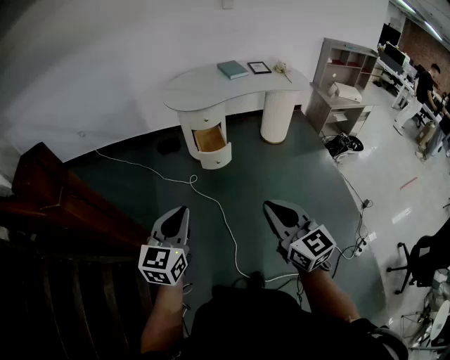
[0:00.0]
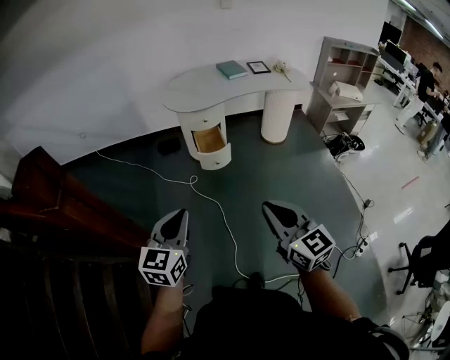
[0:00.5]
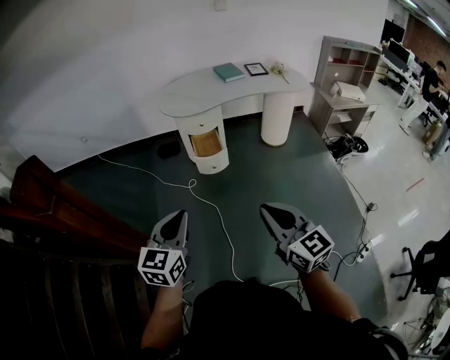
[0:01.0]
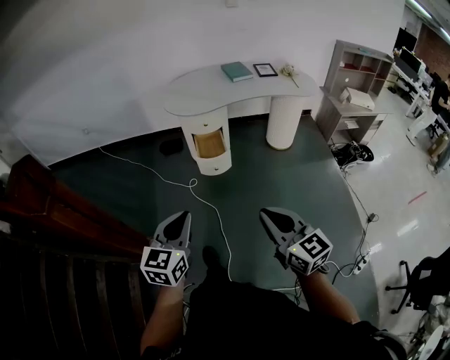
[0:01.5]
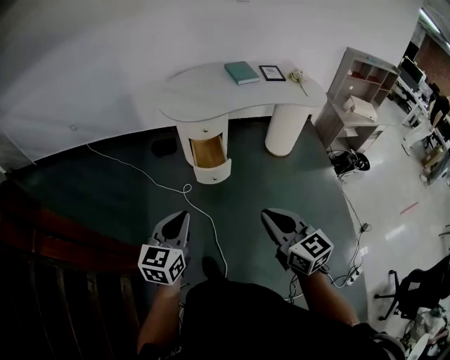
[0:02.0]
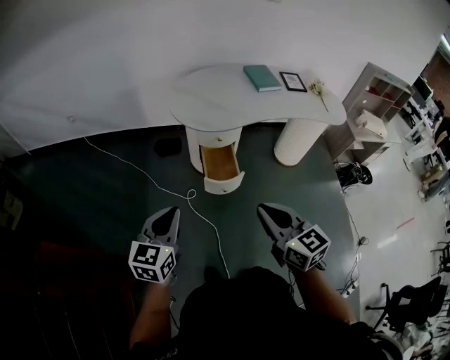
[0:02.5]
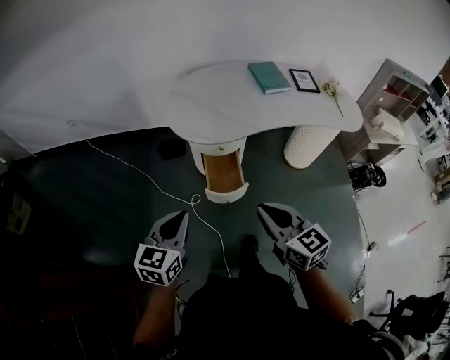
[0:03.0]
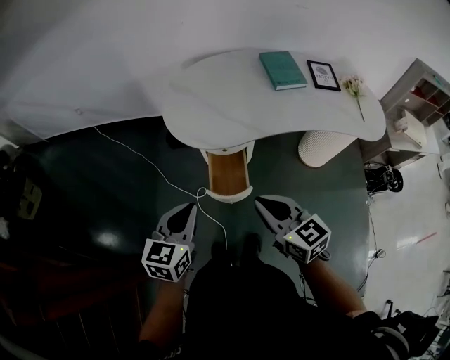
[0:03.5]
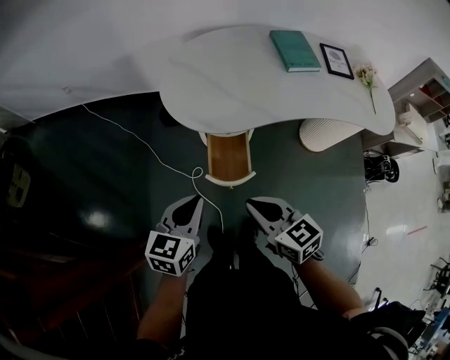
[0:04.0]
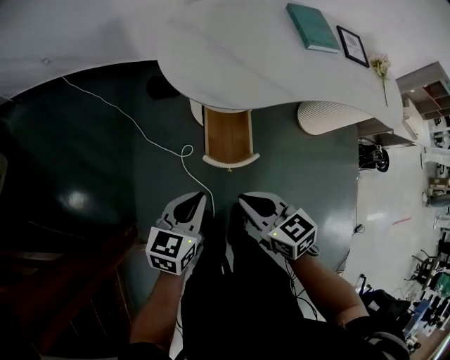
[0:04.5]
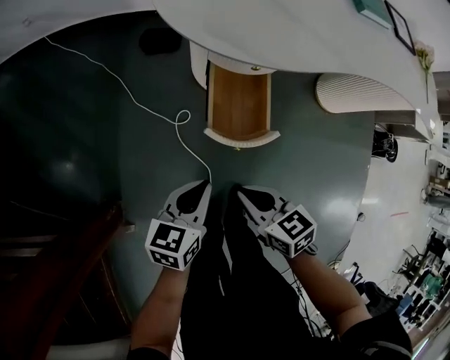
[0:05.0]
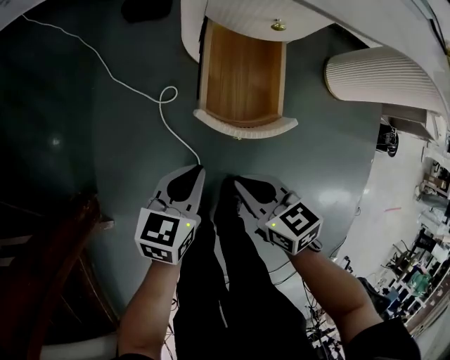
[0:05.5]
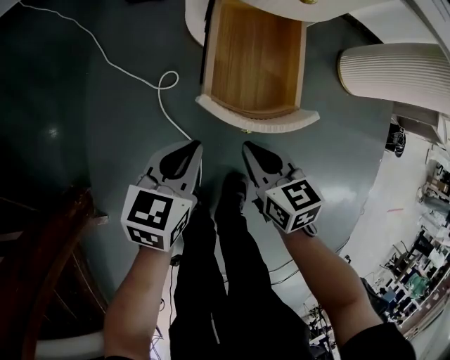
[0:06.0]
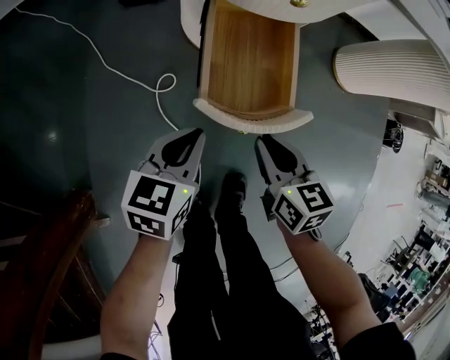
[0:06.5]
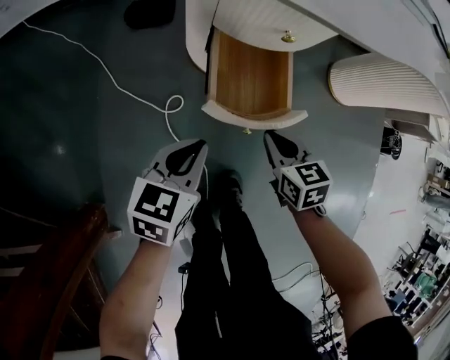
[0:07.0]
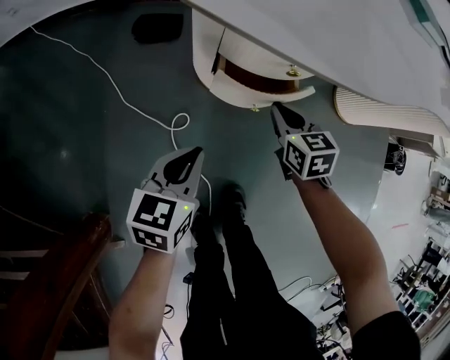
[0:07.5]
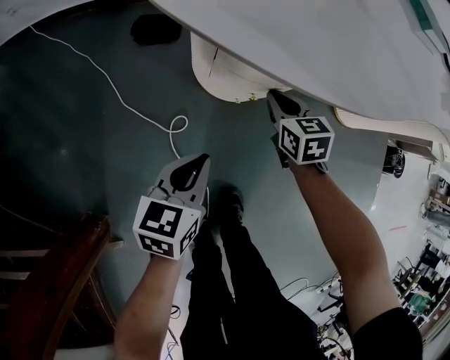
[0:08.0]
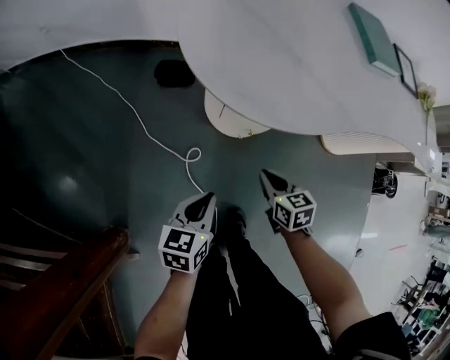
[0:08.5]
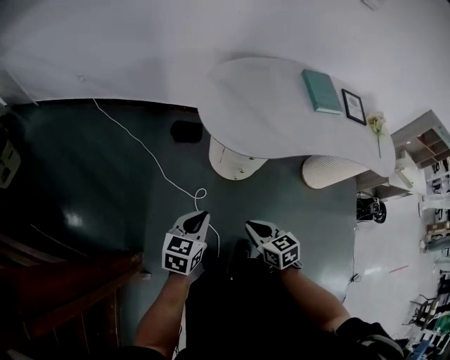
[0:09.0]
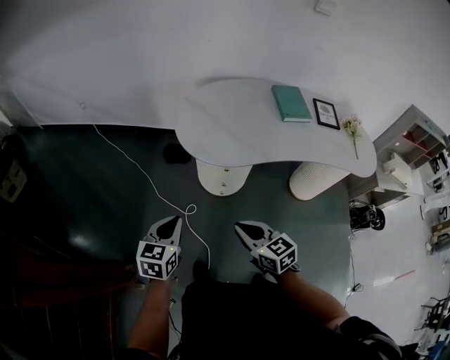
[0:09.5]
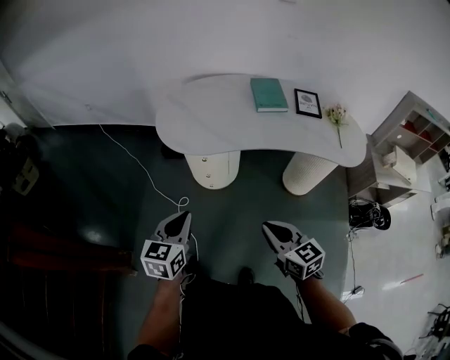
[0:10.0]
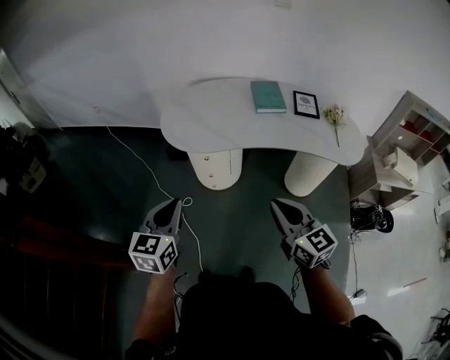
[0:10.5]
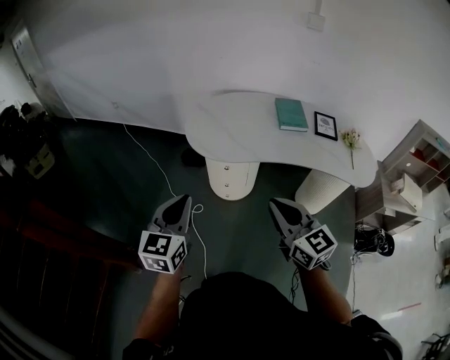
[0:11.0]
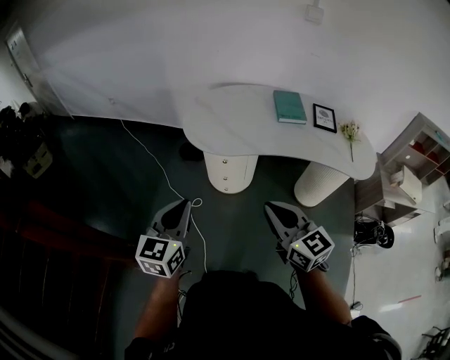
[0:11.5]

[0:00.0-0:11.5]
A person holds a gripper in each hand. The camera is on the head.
0:00.0 to 0:02.0: Both grippers travel together forward, some 20 cm.
0:02.0 to 0:04.0: The grippers both shift forward by about 40 cm. The right gripper swivels about 20 degrees.
0:04.0 to 0:06.0: Both grippers travel together downward, approximately 50 cm. The right gripper swivels approximately 20 degrees.
0:06.0 to 0:07.5: The right gripper shifts approximately 20 cm forward; the left gripper travels forward and upward by about 10 cm.
0:07.5 to 0:09.5: Both grippers move upward and backward, about 50 cm. The right gripper changes its angle by approximately 30 degrees.
0:09.5 to 0:11.5: The left gripper heads upward, backward and to the right, covering roughly 25 cm, and rotates roughly 20 degrees; the right gripper shifts about 25 cm upward, to the right and backward, and turns by roughly 20 degrees.

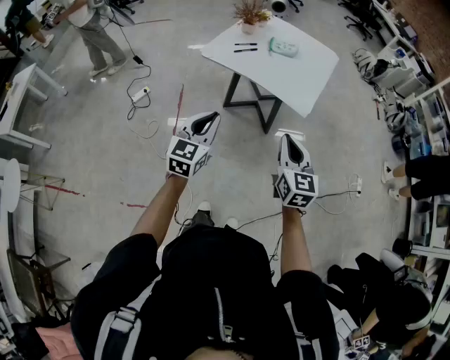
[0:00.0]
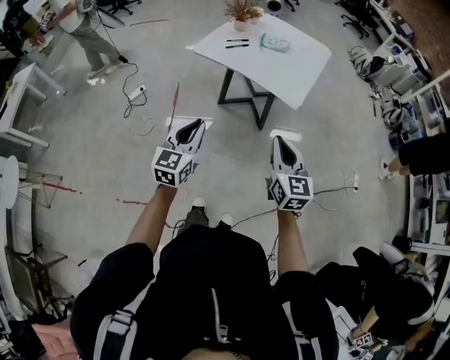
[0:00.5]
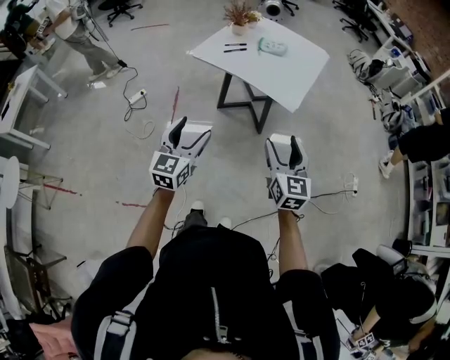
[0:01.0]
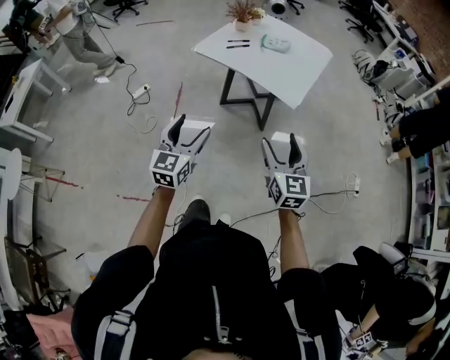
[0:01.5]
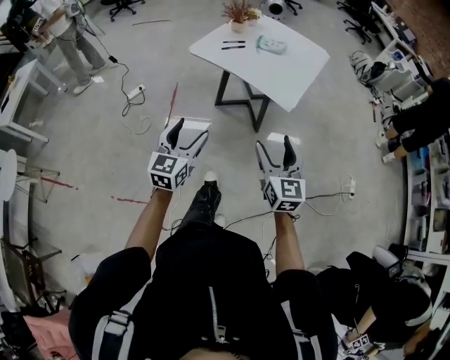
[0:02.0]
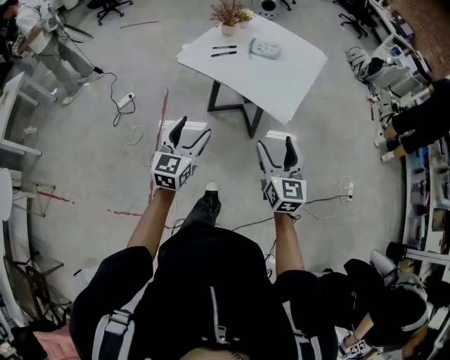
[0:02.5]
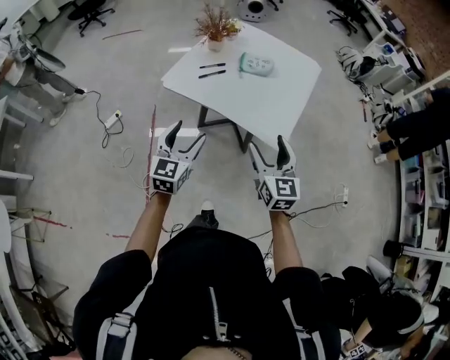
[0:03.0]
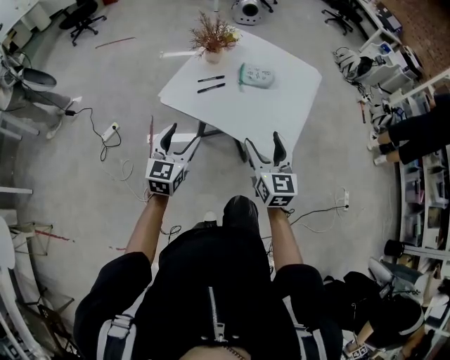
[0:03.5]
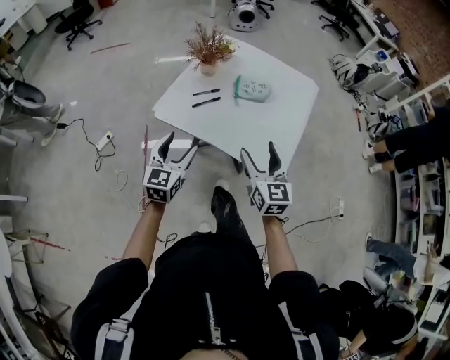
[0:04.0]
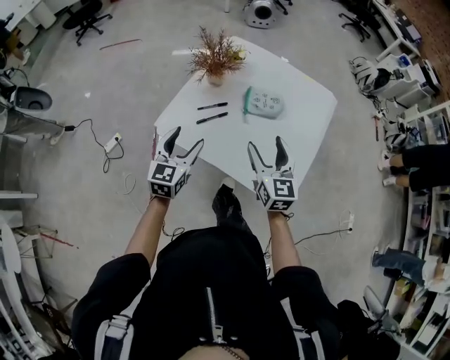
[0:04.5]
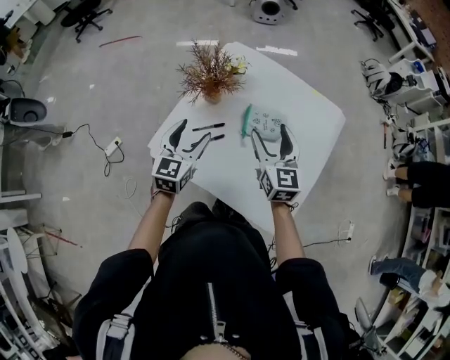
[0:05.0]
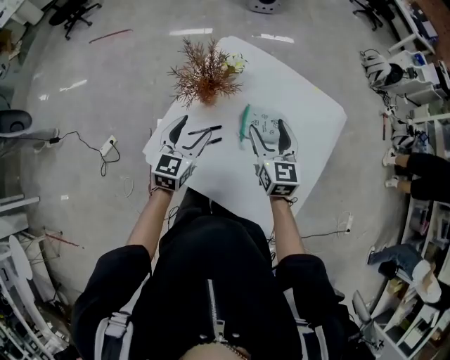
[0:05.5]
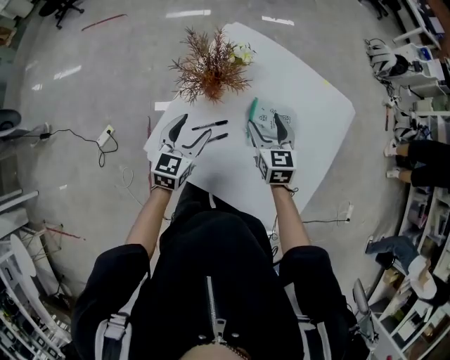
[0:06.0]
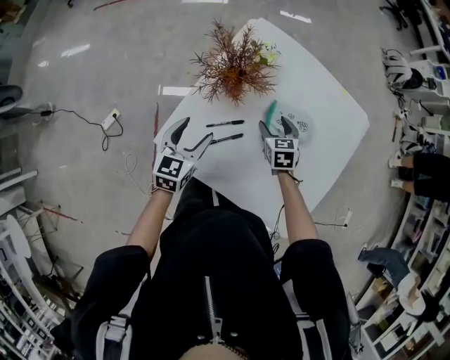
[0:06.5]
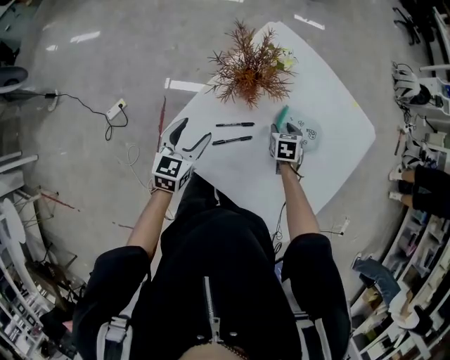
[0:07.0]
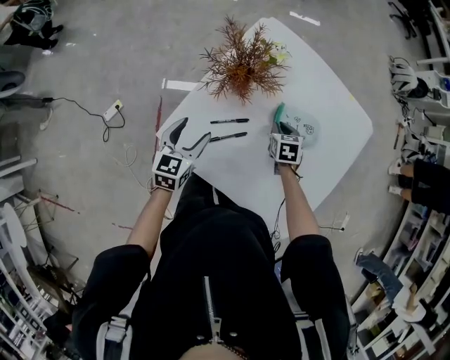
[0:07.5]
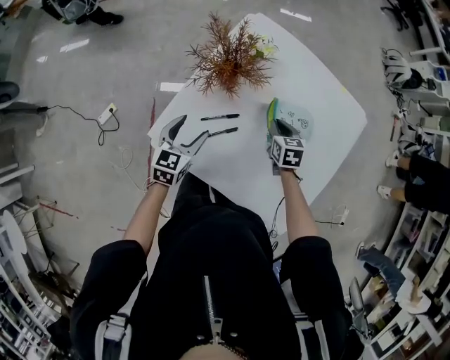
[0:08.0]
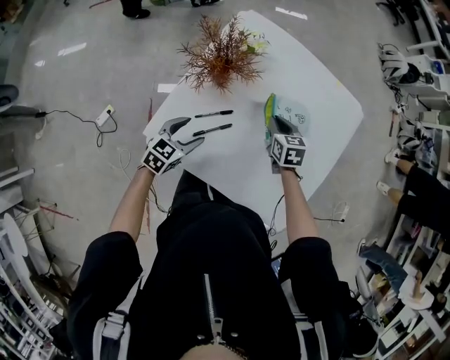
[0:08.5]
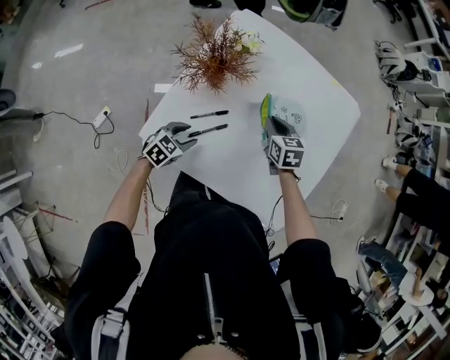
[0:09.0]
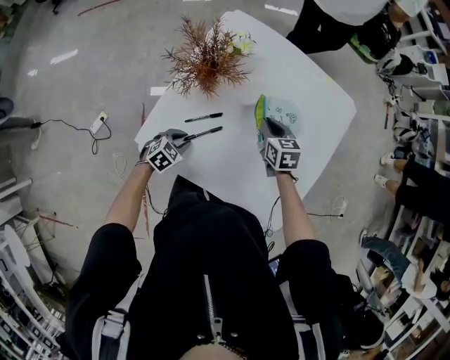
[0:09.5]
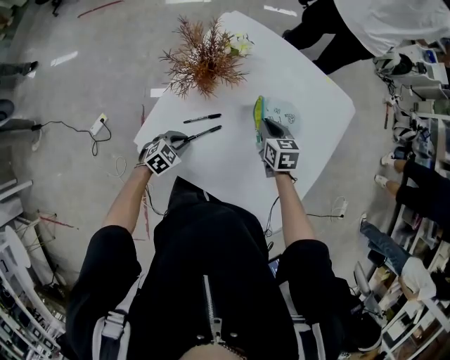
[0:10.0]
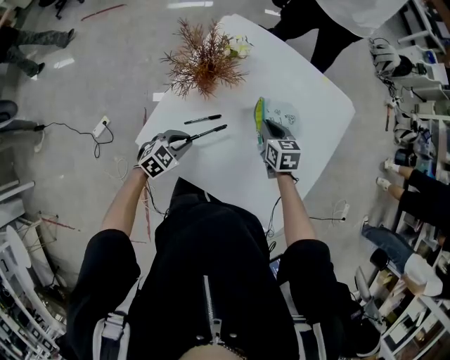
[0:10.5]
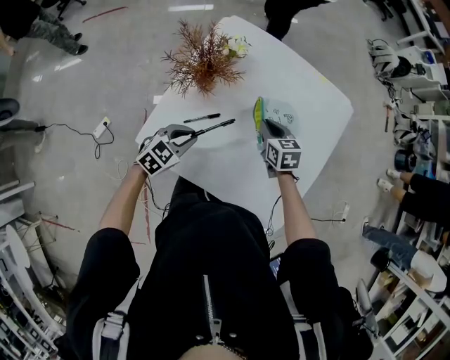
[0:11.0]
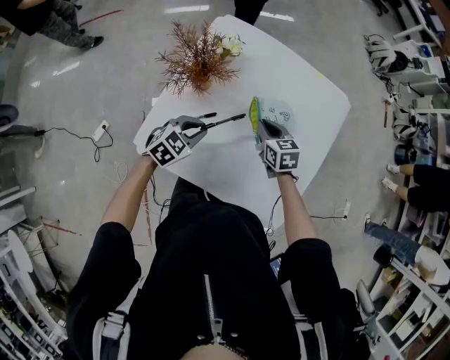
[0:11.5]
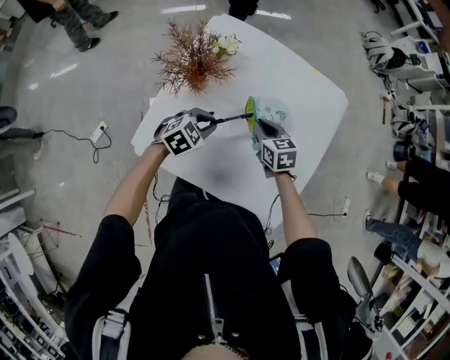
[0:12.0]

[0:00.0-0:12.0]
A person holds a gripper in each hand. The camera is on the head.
0:00.0 to 0:02.0: The left gripper travels backward by about 5 cm, and opens. The right gripper shifts by approximately 5 cm, and opens its fingers.
0:02.0 to 0:04.0: Both grippers travel together forward, some 40 cm.
0:04.0 to 0:06.0: The two grippers go approximately 35 cm forward.
0:06.0 to 0:08.0: The right gripper goes some 15 cm downward, rotates approximately 20 degrees, and closes; the left gripper heads downward, covering about 5 cm.
0:08.0 to 0:10.0: The left gripper travels downward by about 15 cm, swivels about 40 degrees, and closes up.
0:10.0 to 0:12.0: The left gripper is displaced upward, to the right and forward by some 15 cm.

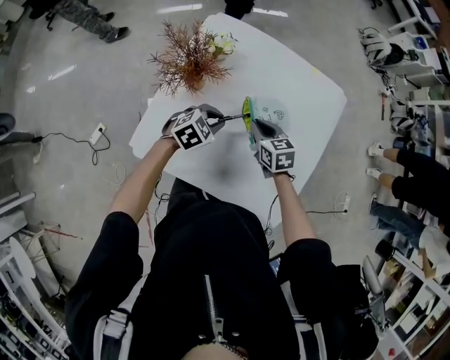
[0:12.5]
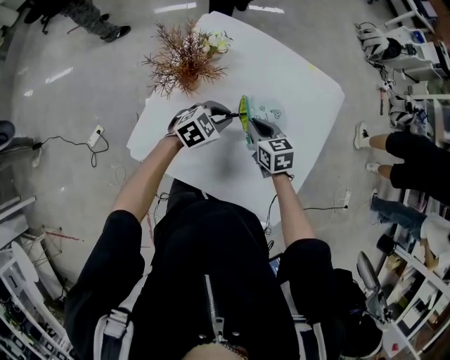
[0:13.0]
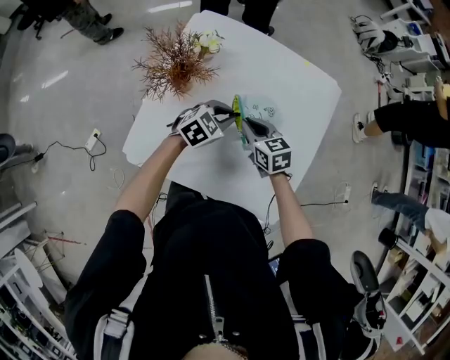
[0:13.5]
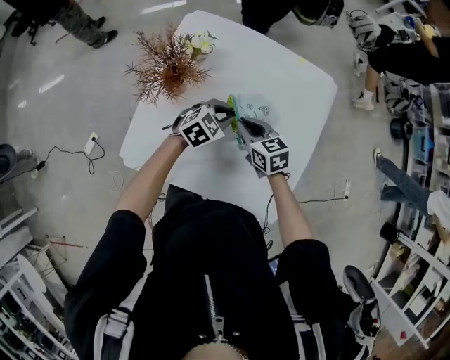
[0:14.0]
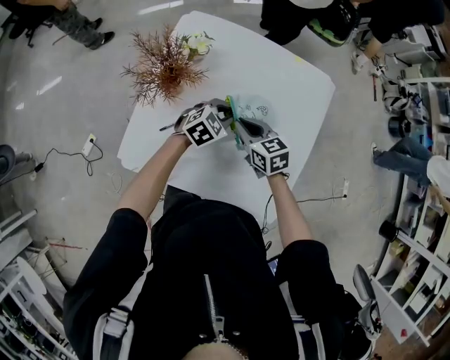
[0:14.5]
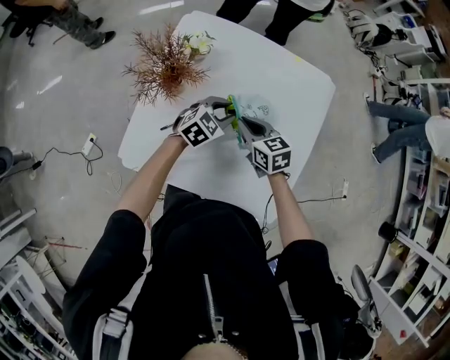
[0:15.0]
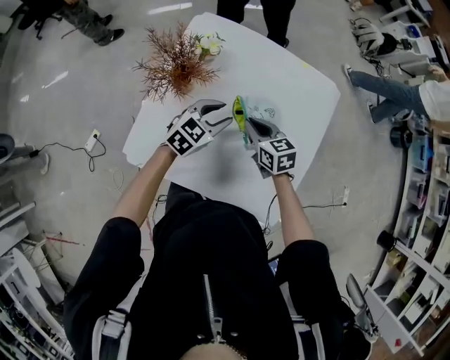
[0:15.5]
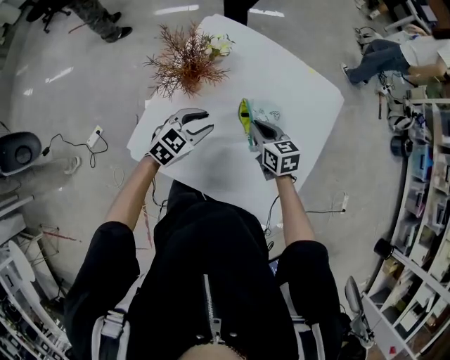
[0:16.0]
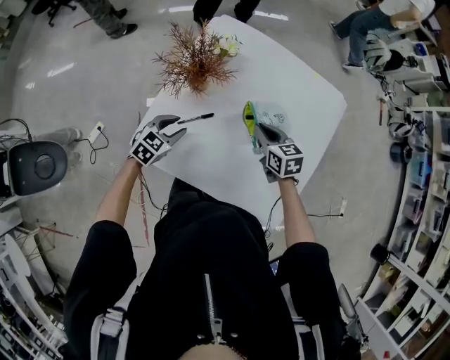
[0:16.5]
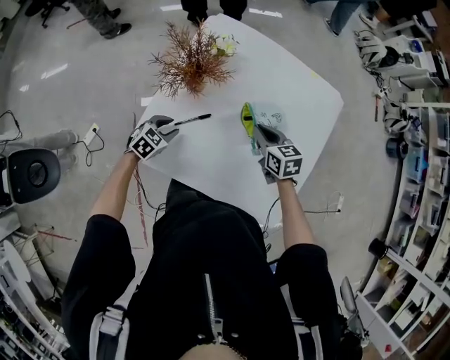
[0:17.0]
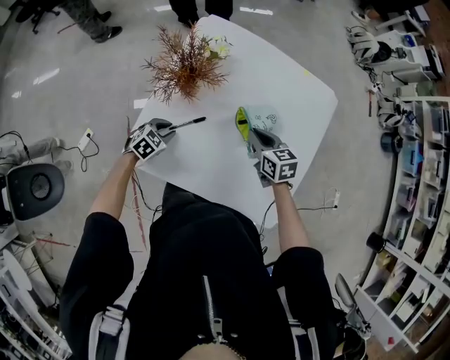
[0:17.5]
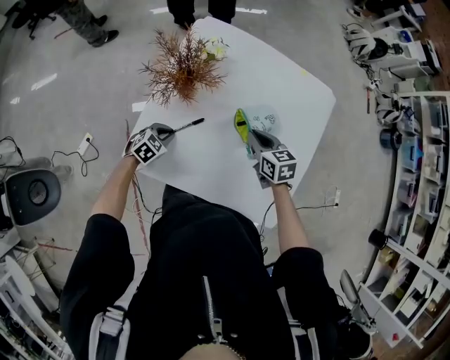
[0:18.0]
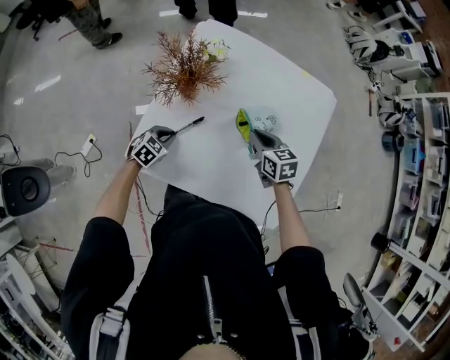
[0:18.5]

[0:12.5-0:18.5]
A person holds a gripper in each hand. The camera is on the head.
0:12.5 to 0:14.5: The left gripper goes some 10 cm to the right and forward.
0:14.5 to 0:16.5: The left gripper travels to the left and backward by roughly 25 cm.
0:16.5 to 0:18.5: The left gripper travels downward by approximately 10 cm, and closes.
